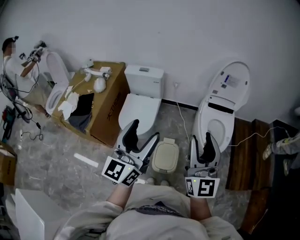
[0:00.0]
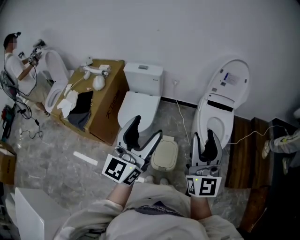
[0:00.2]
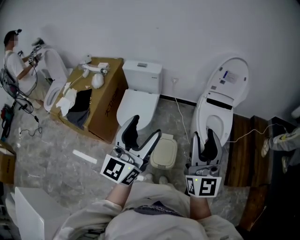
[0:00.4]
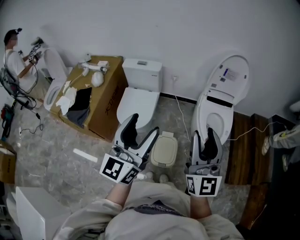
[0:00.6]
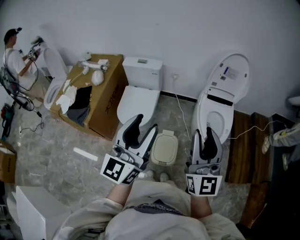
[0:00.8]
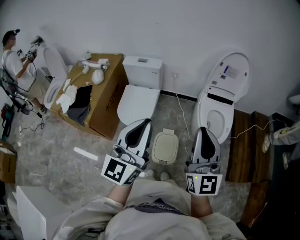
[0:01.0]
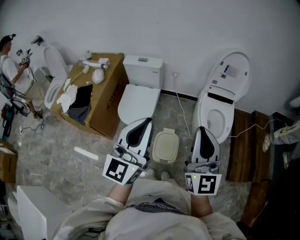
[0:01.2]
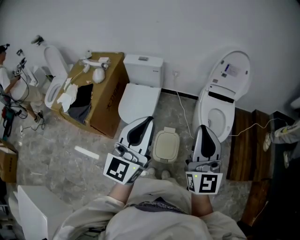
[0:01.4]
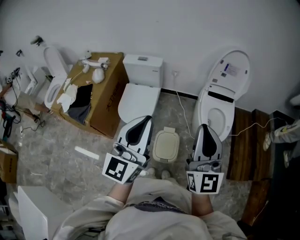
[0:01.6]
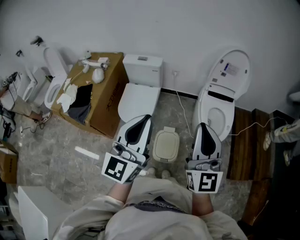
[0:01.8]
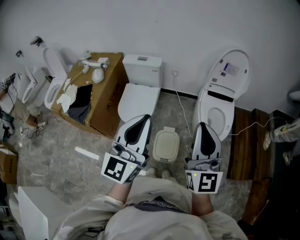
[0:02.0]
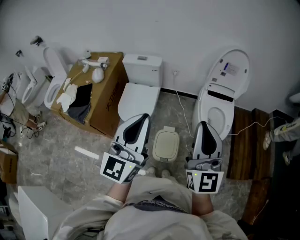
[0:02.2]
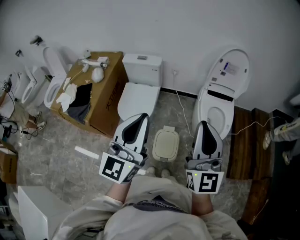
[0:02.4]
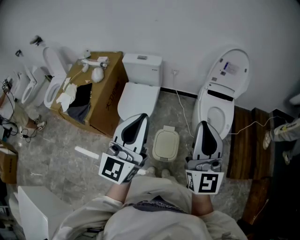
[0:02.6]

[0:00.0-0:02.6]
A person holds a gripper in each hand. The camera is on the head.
0:00.0 to 0:01.2: The left gripper closes its fingers, while the right gripper closes.
0:01.2 to 0:02.6: The grippers stay close to where they were, moving slightly.

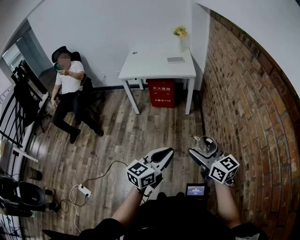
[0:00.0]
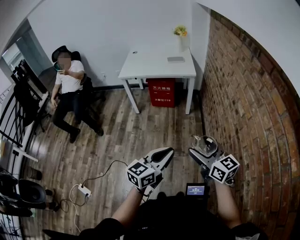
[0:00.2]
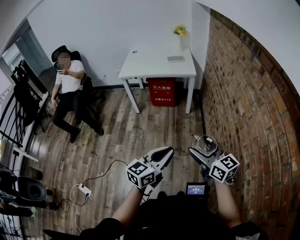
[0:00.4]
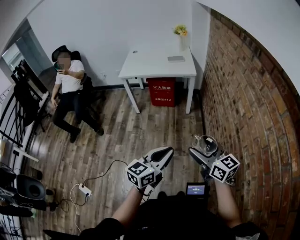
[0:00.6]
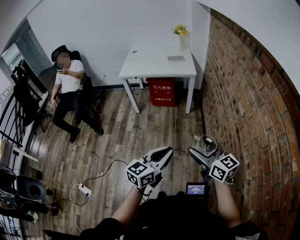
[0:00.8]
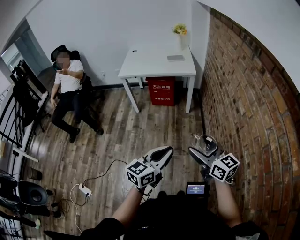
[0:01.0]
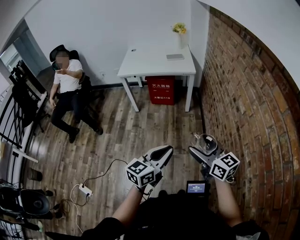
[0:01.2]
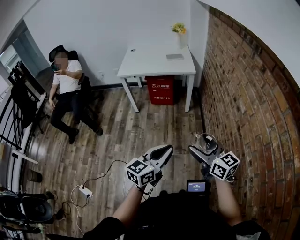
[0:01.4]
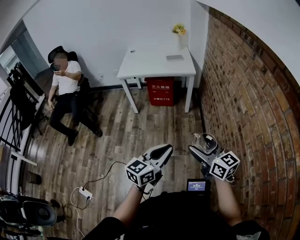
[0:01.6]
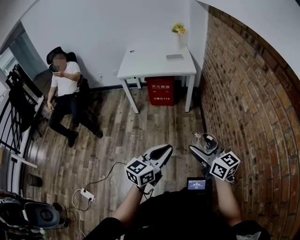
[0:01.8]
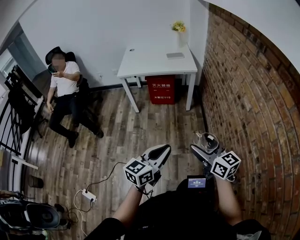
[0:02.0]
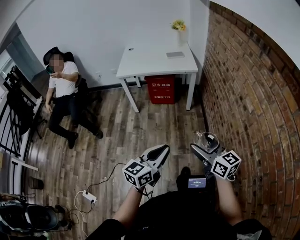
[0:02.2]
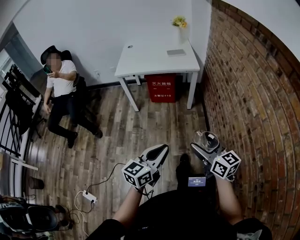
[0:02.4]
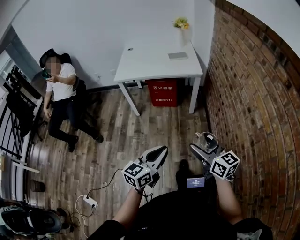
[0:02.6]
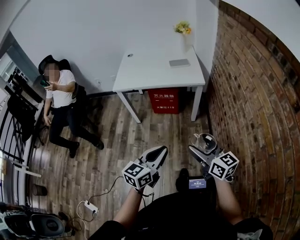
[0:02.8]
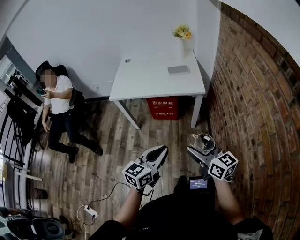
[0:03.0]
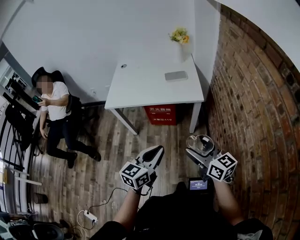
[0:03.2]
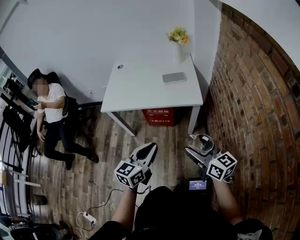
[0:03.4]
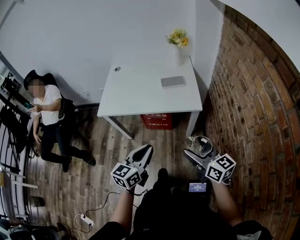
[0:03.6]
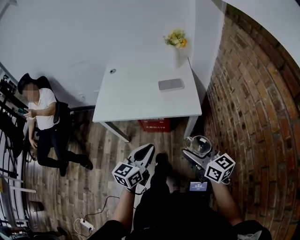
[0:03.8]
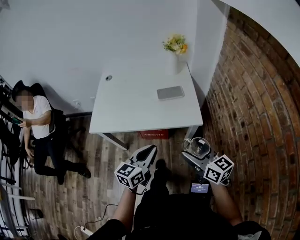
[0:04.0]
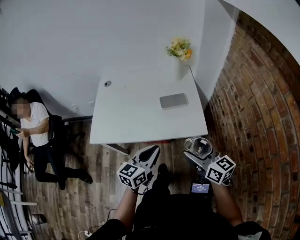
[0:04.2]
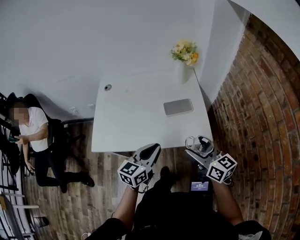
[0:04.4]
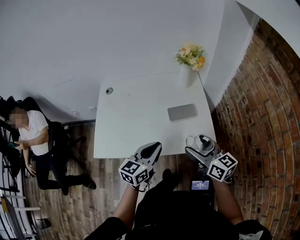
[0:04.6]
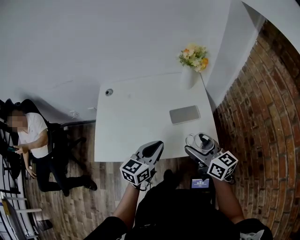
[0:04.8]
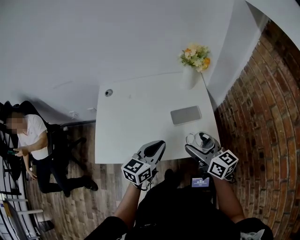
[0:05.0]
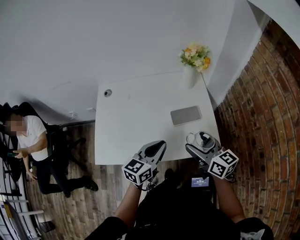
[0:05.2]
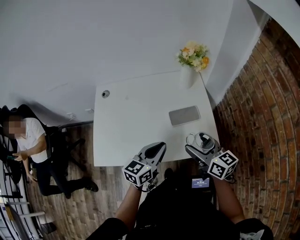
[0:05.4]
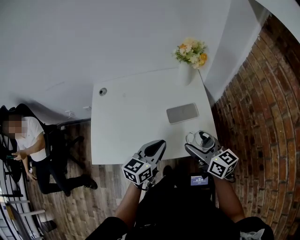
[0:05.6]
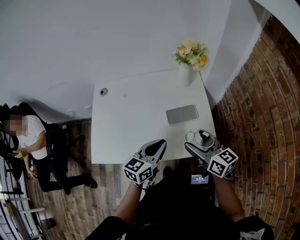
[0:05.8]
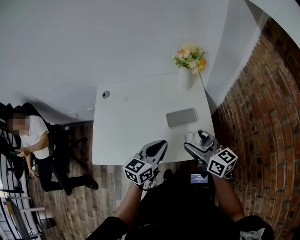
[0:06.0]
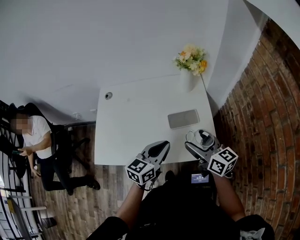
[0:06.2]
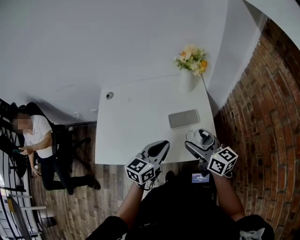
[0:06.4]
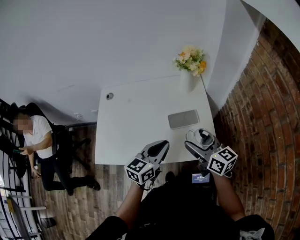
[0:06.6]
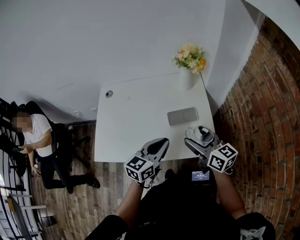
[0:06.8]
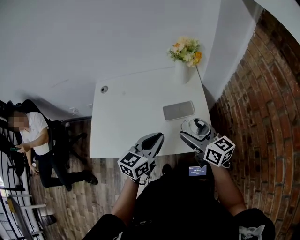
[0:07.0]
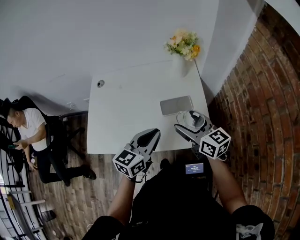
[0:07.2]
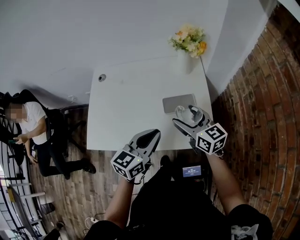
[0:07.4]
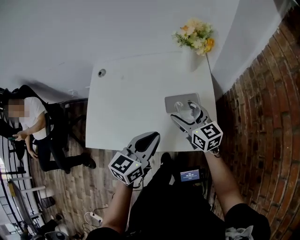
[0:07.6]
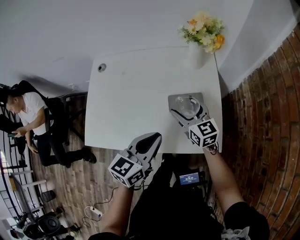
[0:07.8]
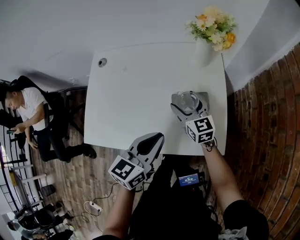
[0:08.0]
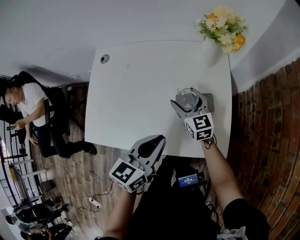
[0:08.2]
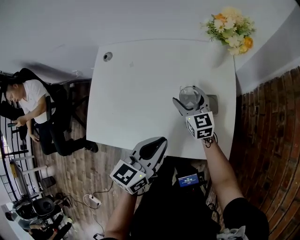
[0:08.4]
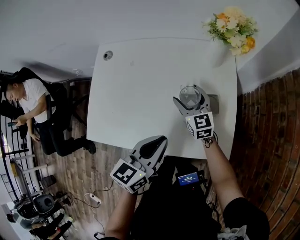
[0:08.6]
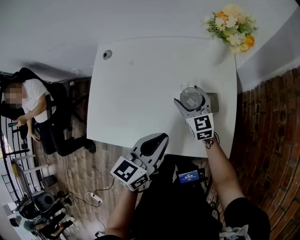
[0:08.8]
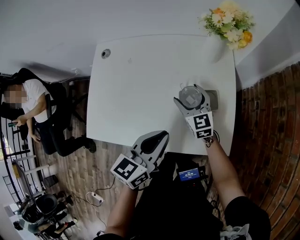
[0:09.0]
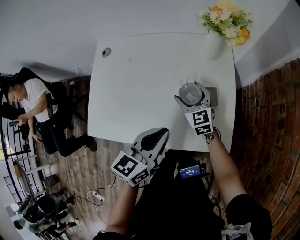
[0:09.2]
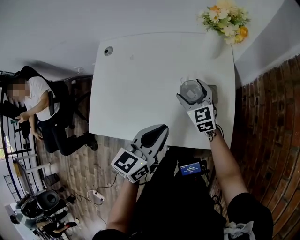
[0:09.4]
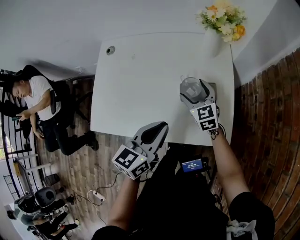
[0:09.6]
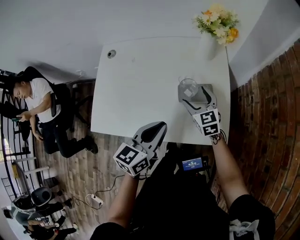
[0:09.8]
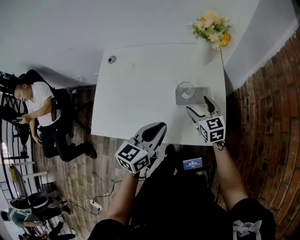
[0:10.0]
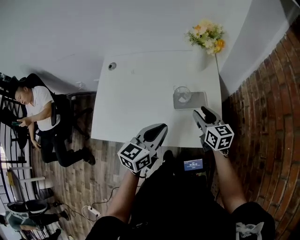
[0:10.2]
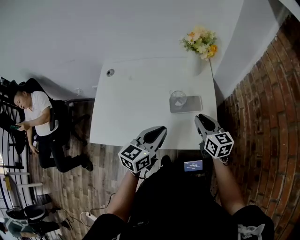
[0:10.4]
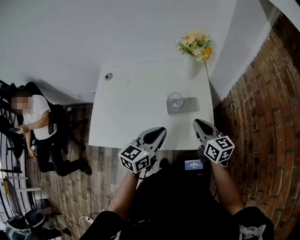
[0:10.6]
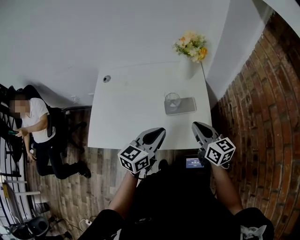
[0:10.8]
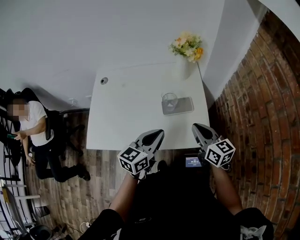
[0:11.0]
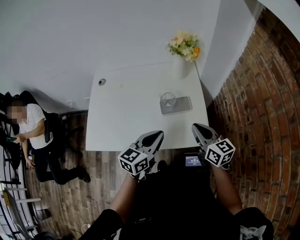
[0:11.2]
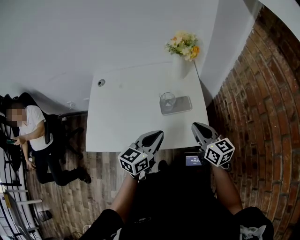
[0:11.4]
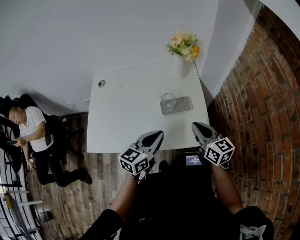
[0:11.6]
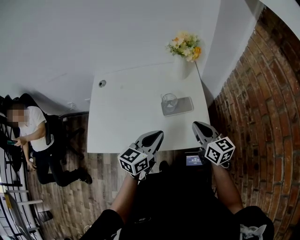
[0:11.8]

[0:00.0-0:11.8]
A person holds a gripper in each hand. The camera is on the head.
0:00.0 to 0:01.4: There are only small adjustments of the grippers.
0:01.4 to 0:03.0: Both grippers travel together forward, approximately 35 cm.
0:03.0 to 0:04.4: The two grippers travel together, forward, some 40 cm.
0:04.4 to 0:06.0: The two grippers go about 10 cm forward.
0:06.0 to 0:07.4: The right gripper travels forward by roughly 5 cm.
0:07.4 to 0:08.8: The left gripper moves roughly 5 cm, while the right gripper moves downward, forward and to the left, roughly 20 cm.
0:08.8 to 0:10.4: The right gripper moves backward, to the right and upward, some 20 cm, turns by roughly 20 degrees, and closes up.
0:10.4 to 0:11.8: The right gripper is displaced backward by about 5 cm.

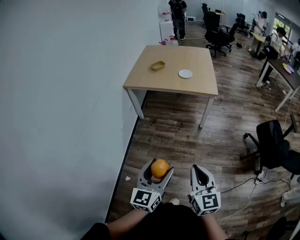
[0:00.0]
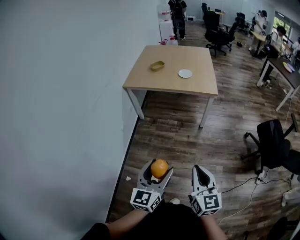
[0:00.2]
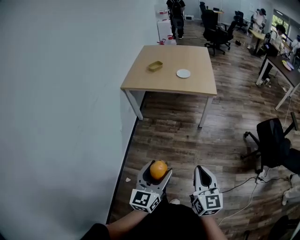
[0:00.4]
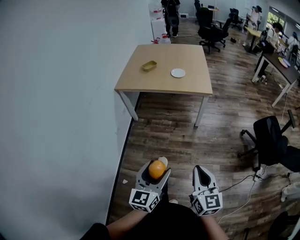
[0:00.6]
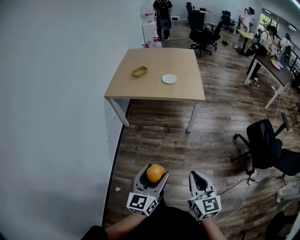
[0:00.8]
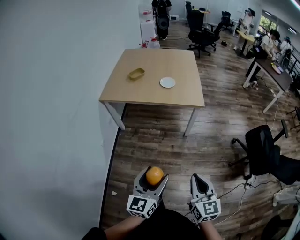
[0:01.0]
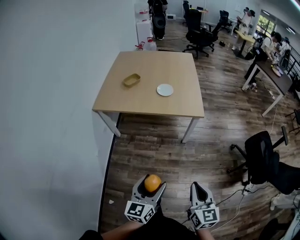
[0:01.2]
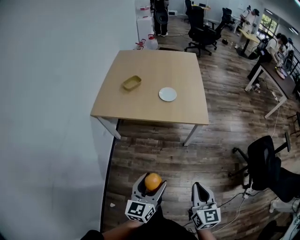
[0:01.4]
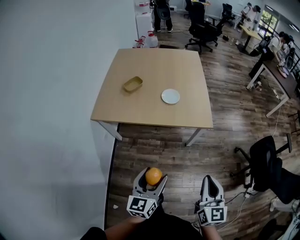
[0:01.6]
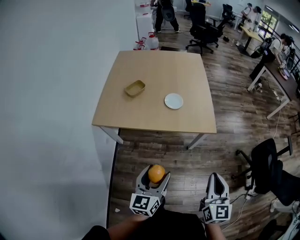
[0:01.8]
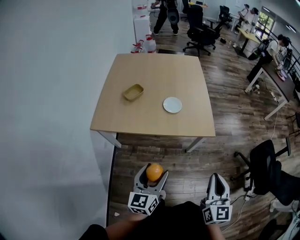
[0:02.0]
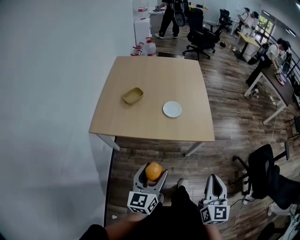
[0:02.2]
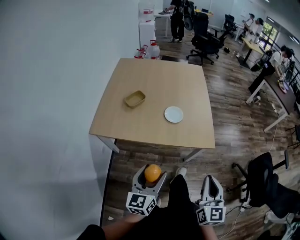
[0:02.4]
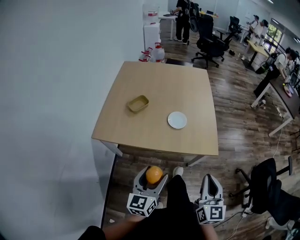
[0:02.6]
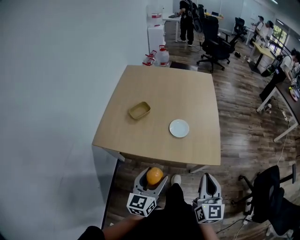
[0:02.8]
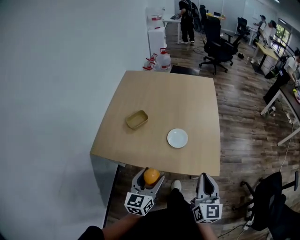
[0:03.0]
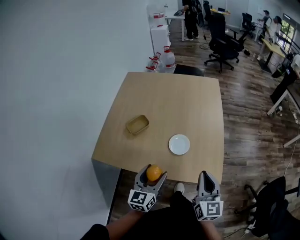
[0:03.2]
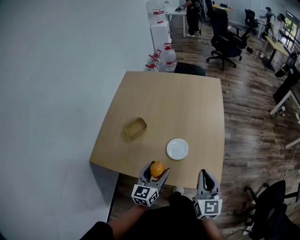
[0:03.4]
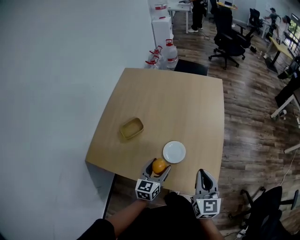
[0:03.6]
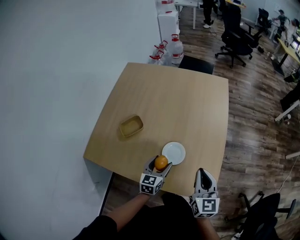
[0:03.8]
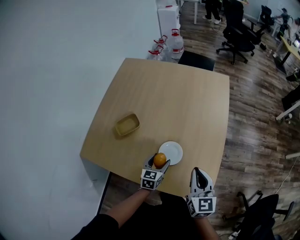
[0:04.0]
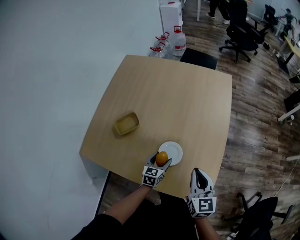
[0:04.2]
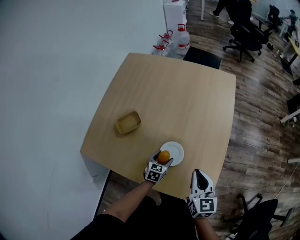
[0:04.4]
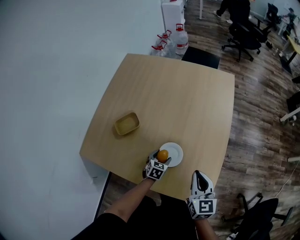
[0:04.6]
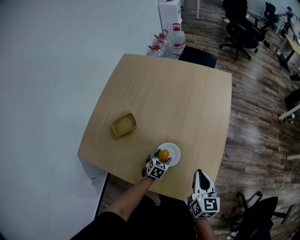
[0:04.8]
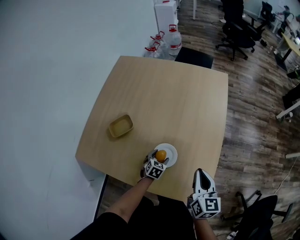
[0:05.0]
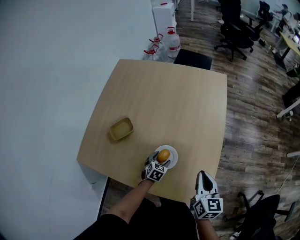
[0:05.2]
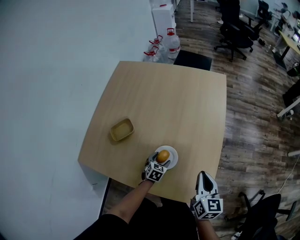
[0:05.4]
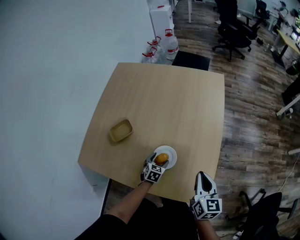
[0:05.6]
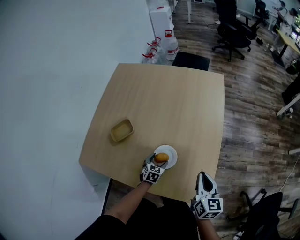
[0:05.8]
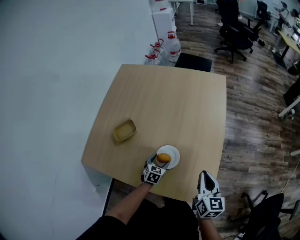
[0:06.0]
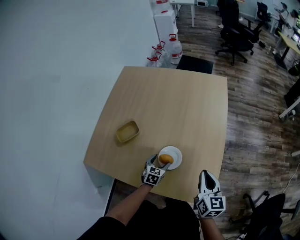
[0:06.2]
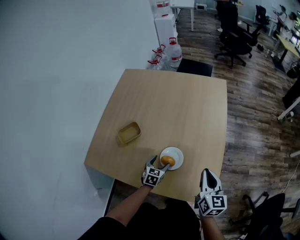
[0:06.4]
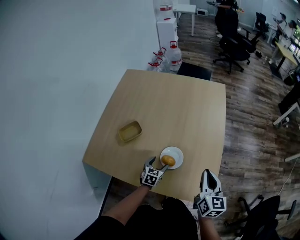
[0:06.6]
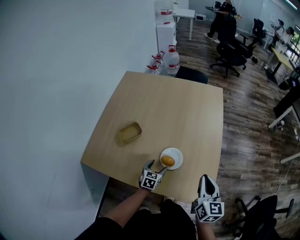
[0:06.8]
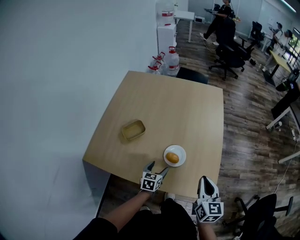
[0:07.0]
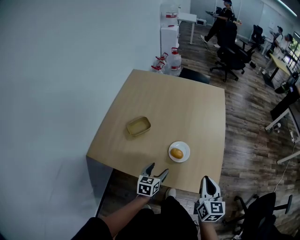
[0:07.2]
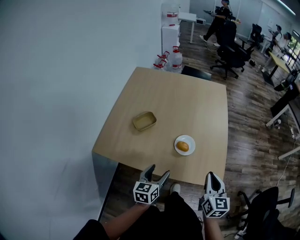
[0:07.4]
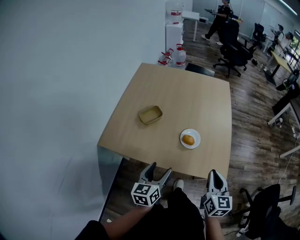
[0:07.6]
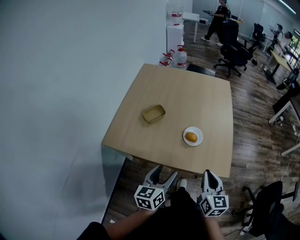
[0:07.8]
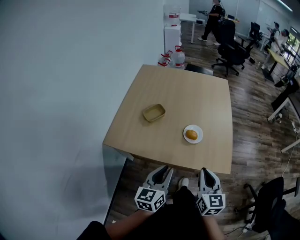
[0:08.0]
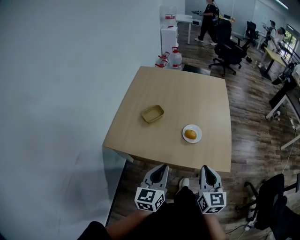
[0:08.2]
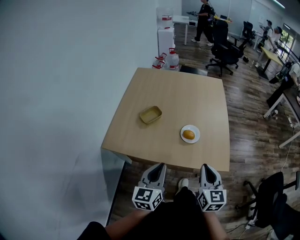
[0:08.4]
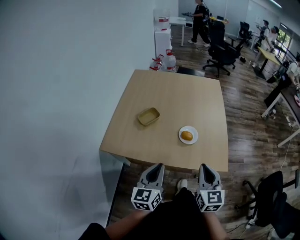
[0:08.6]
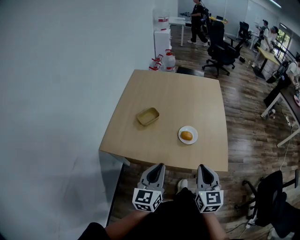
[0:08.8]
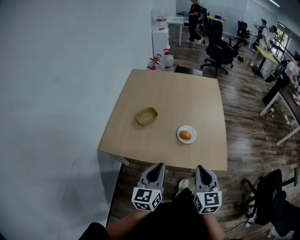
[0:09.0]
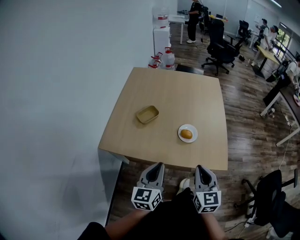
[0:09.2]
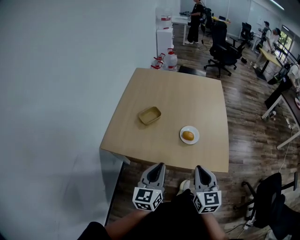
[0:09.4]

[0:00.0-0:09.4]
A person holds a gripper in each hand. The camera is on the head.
0:00.0 to 0:01.6: Both grippers travel together forward, about 40 cm.
0:01.6 to 0:03.2: Both grippers travel together forward, some 35 cm.
0:03.2 to 0:04.8: The left gripper shifts roughly 35 cm downward and forward, and tips its fingers downward by about 40 degrees, while the right gripper goes some 20 cm forward and downward.
0:04.8 to 0:06.2: The grippers move only a little.
0:06.2 to 0:07.8: The left gripper heads backward and upward, covering roughly 40 cm, and swivels some 40 degrees. The right gripper is displaced backward and to the left by about 25 cm.
0:07.8 to 0:09.4: The left gripper ends up about 5 cm from where it was, and closes up. The right gripper goes some 5 cm to the left.
